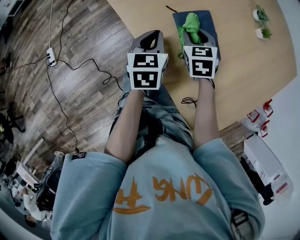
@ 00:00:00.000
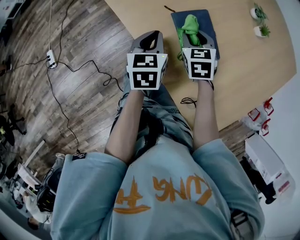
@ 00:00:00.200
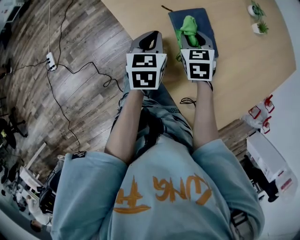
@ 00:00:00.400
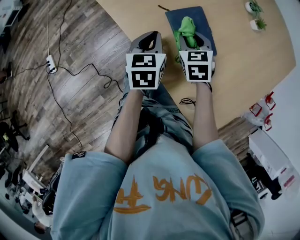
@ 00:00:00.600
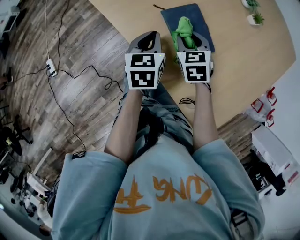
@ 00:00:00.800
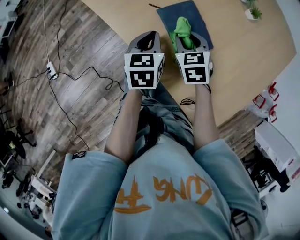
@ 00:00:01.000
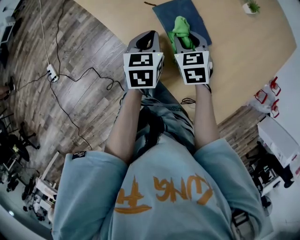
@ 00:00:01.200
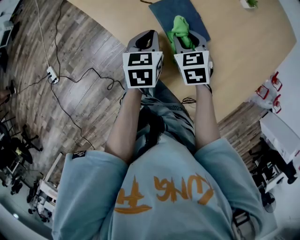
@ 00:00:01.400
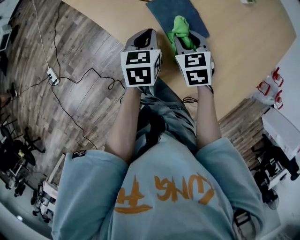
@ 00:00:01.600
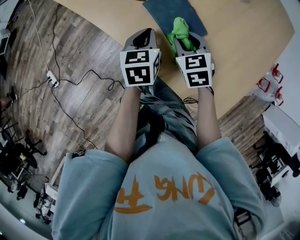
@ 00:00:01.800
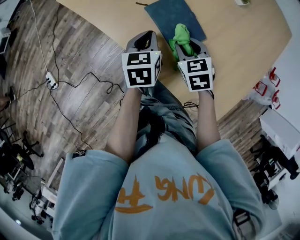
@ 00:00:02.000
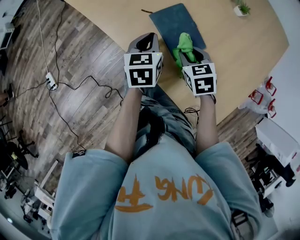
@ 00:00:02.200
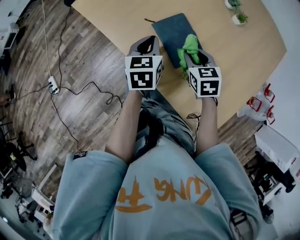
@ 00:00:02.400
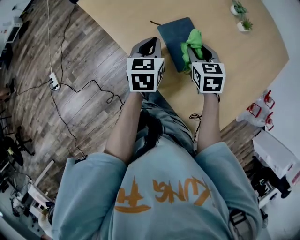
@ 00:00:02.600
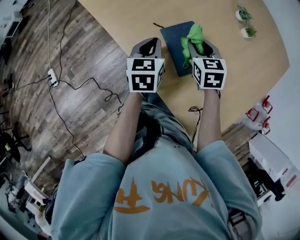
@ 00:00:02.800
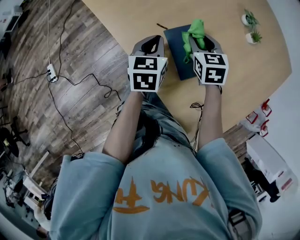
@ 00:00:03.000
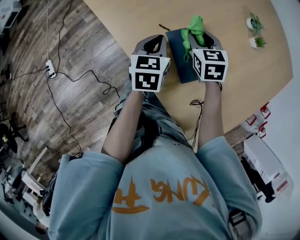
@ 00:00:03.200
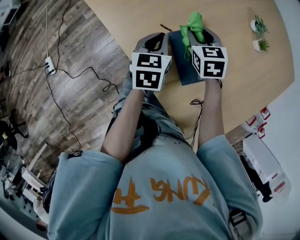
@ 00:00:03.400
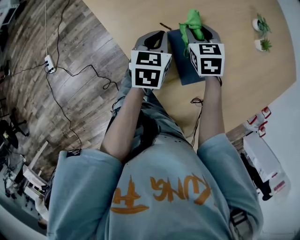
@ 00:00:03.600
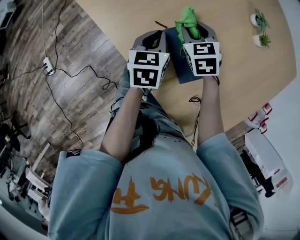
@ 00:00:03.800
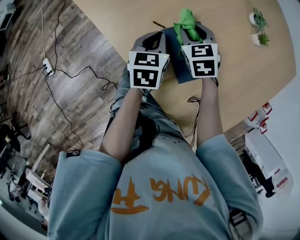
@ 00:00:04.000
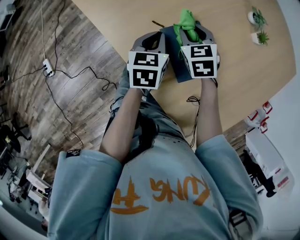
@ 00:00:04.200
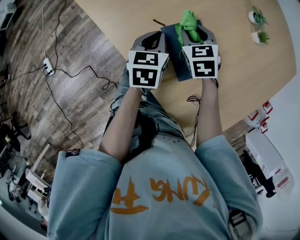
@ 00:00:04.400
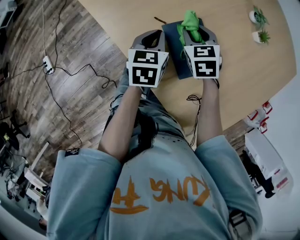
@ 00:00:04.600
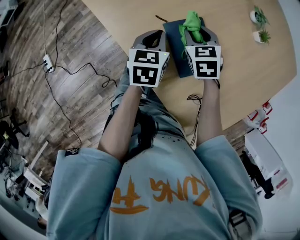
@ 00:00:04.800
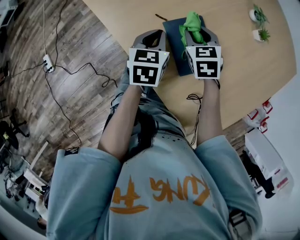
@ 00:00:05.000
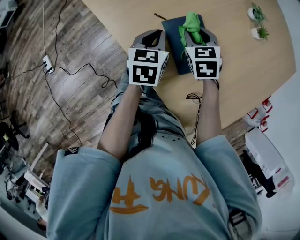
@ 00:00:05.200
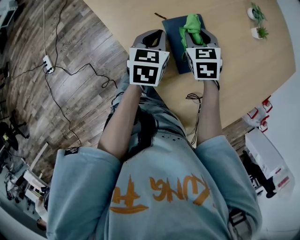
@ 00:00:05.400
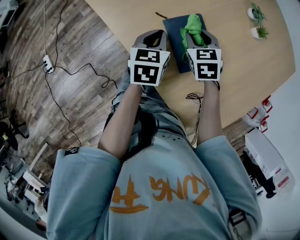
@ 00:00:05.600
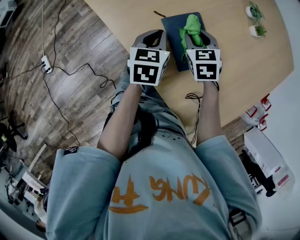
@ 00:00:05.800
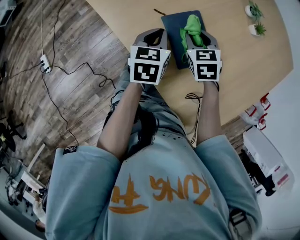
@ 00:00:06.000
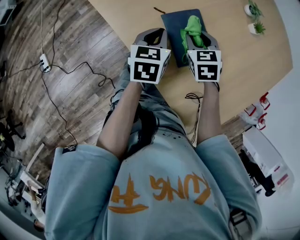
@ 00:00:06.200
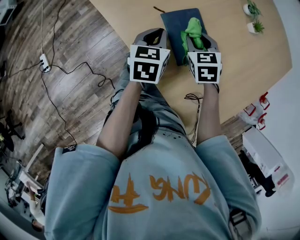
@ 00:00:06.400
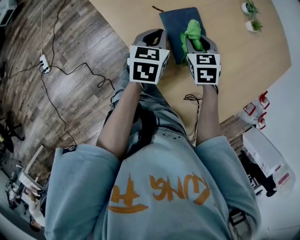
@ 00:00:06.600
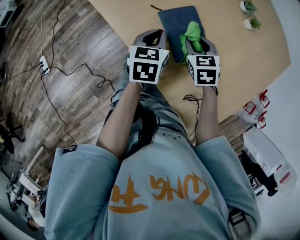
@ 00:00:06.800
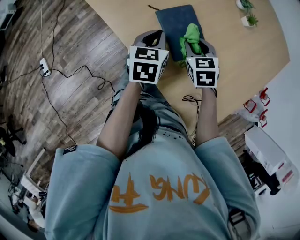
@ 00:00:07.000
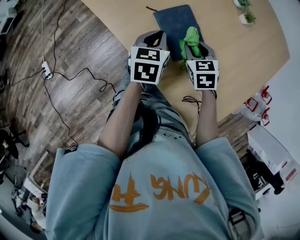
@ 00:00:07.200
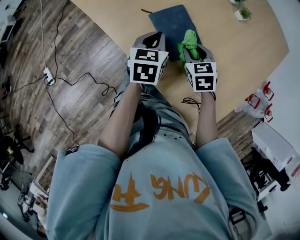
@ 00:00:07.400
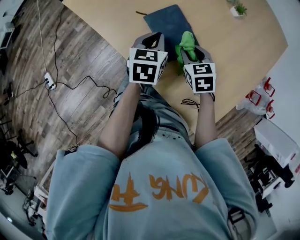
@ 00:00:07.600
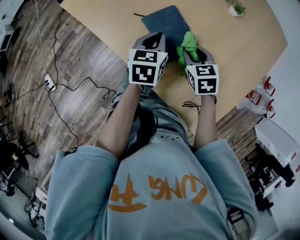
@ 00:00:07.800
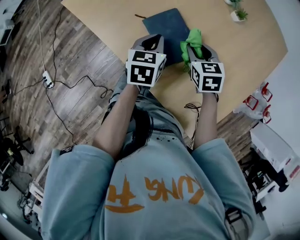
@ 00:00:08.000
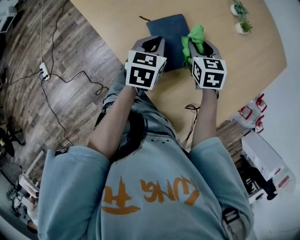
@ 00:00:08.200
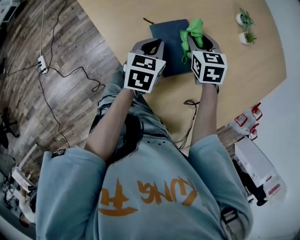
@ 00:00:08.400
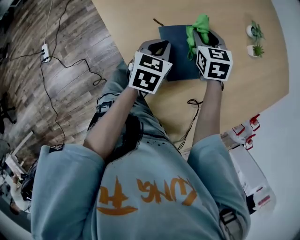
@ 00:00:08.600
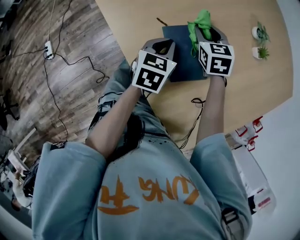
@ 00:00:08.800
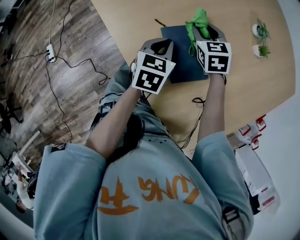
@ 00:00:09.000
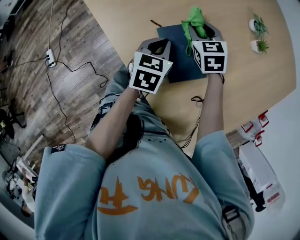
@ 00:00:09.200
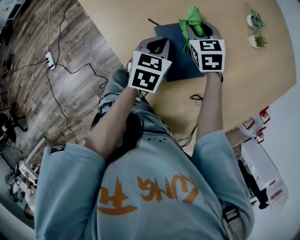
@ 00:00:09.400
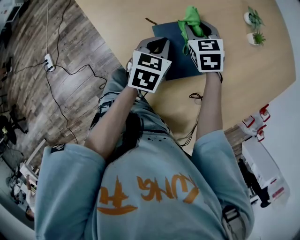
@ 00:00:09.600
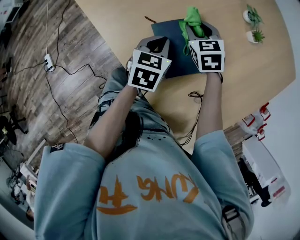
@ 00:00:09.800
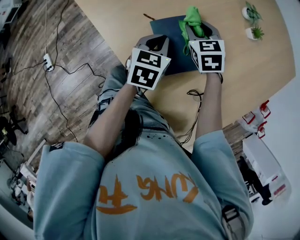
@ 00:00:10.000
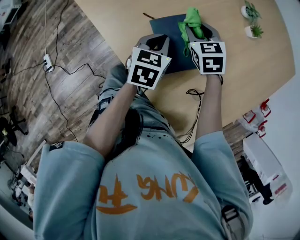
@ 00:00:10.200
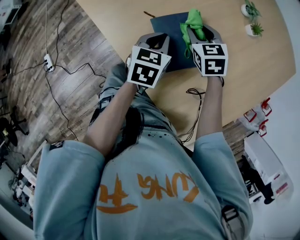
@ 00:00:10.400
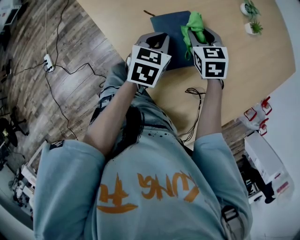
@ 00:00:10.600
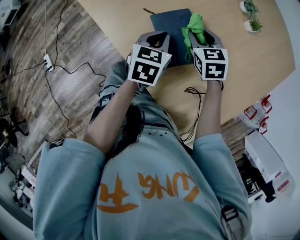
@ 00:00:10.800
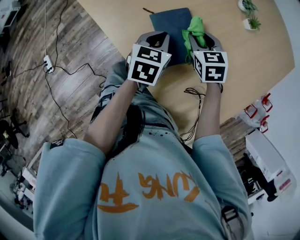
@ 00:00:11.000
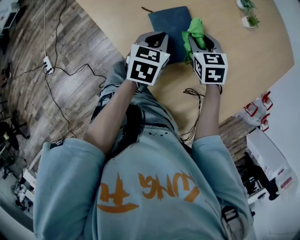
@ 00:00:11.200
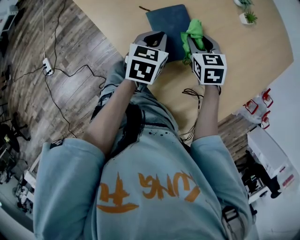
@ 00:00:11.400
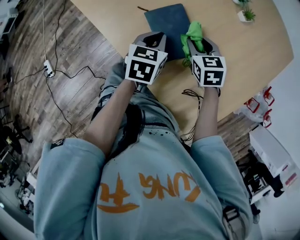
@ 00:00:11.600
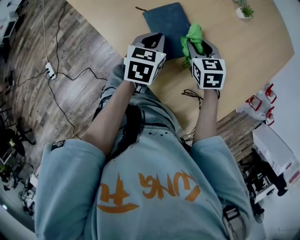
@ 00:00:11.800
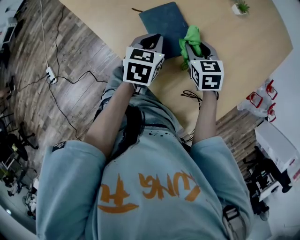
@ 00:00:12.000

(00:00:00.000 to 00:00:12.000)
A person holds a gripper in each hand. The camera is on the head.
00:00:00.000 - 00:00:01.600: The right gripper heads backward, covering roughly 5 cm. The left gripper heads to the right, covering about 5 cm.
00:00:01.600 - 00:00:03.000: The right gripper is displaced forward by approximately 10 cm, while the left gripper is displaced forward by about 10 cm.
00:00:03.000 - 00:00:04.400: The right gripper ends up roughly 5 cm from where it was. Meanwhile the left gripper moves roughly 5 cm.
00:00:04.400 - 00:00:06.000: The right gripper goes approximately 5 cm backward.
00:00:06.000 - 00:00:07.600: The right gripper is displaced backward and to the right by some 10 cm. The left gripper moves to the right, about 5 cm.
00:00:07.600 - 00:00:09.000: The right gripper moves forward, some 20 cm, while the left gripper shifts some 5 cm forward.
00:00:09.000 - 00:00:10.400: The right gripper shifts some 5 cm backward.
00:00:10.400 - 00:00:12.000: The right gripper is displaced backward and to the right by about 10 cm.

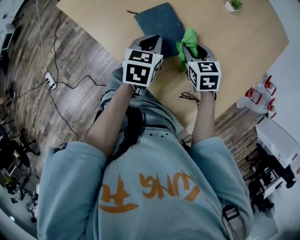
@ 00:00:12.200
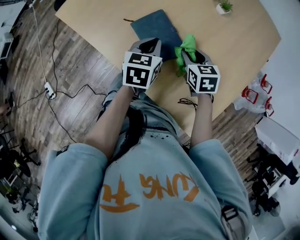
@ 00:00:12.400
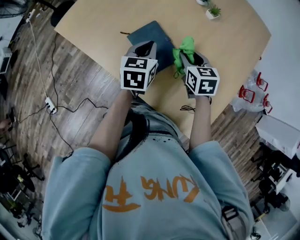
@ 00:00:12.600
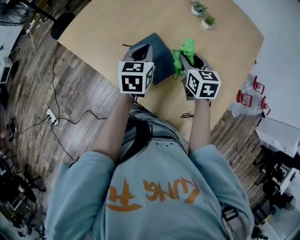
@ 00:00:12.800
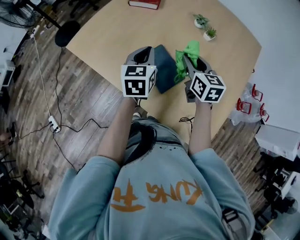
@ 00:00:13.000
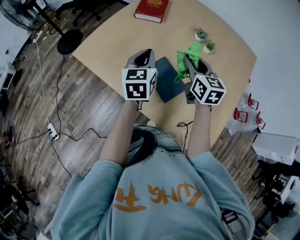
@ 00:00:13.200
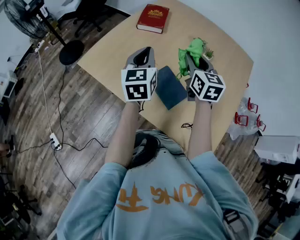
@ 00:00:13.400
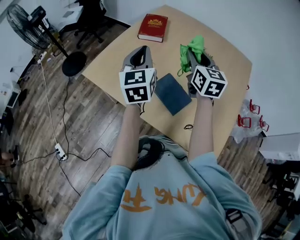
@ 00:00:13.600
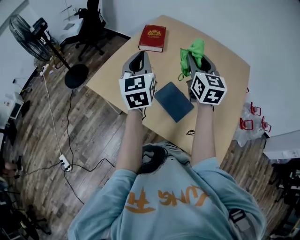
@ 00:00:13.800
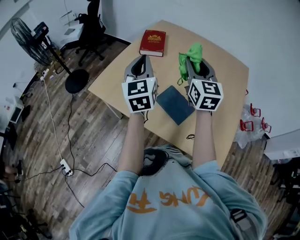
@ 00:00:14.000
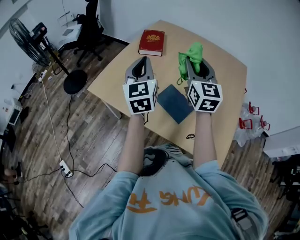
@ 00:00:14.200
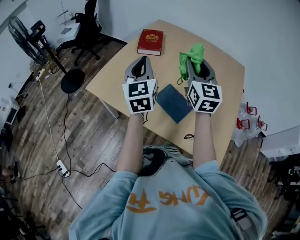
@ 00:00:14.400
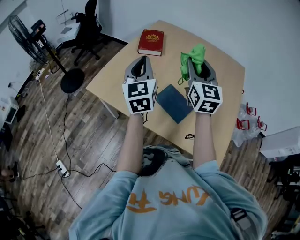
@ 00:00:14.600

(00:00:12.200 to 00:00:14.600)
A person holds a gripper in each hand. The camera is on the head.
00:00:12.200 - 00:00:13.400: The right gripper moves upward, roughly 25 cm, and changes its angle by some 30 degrees; the left gripper heads upward and to the left, covering roughly 25 cm, and swivels some 30 degrees.
00:00:13.400 - 00:00:14.600: The right gripper is displaced upward by some 10 cm, and rotates roughly 20 degrees. Meanwhile the left gripper moves upward and to the left, about 10 cm.

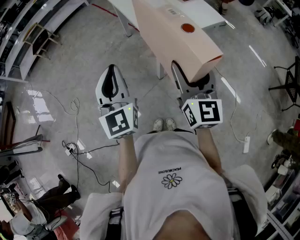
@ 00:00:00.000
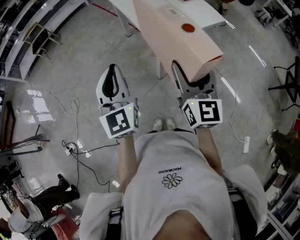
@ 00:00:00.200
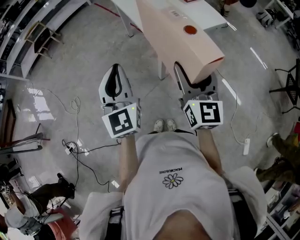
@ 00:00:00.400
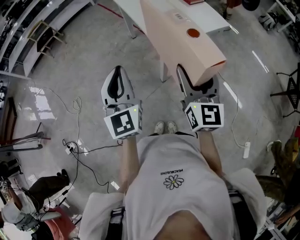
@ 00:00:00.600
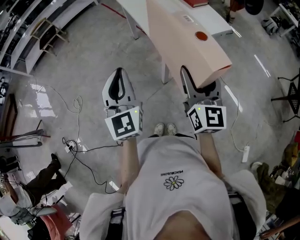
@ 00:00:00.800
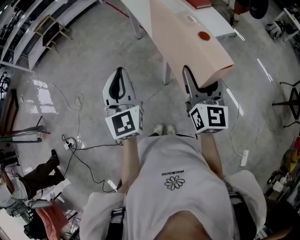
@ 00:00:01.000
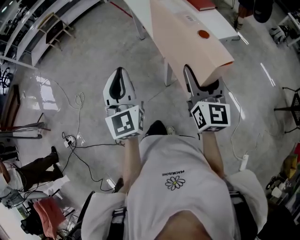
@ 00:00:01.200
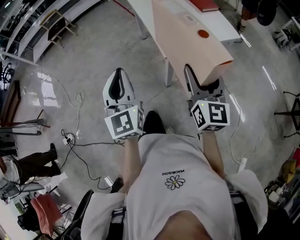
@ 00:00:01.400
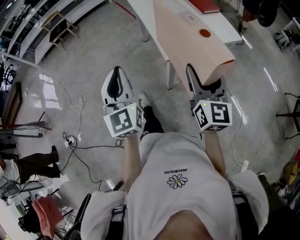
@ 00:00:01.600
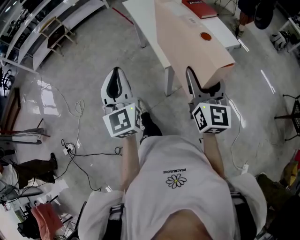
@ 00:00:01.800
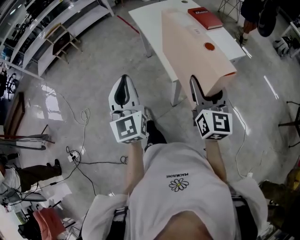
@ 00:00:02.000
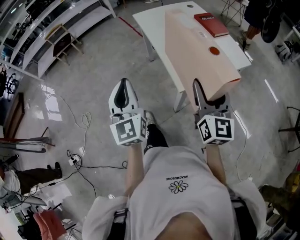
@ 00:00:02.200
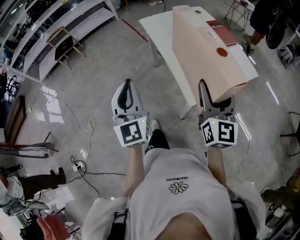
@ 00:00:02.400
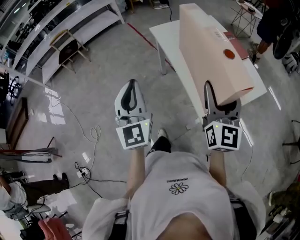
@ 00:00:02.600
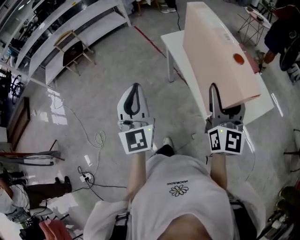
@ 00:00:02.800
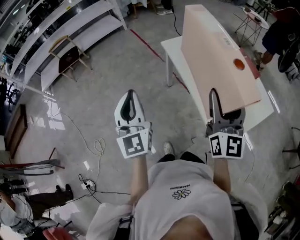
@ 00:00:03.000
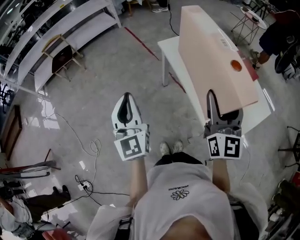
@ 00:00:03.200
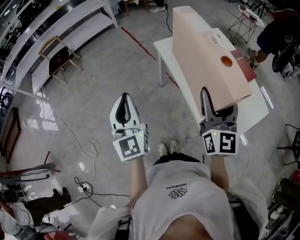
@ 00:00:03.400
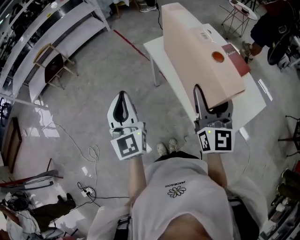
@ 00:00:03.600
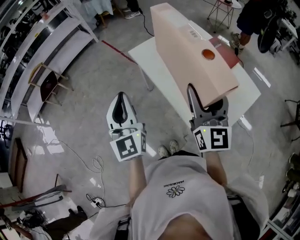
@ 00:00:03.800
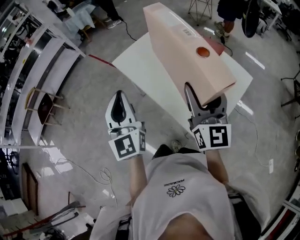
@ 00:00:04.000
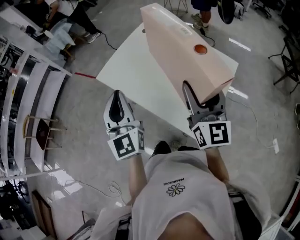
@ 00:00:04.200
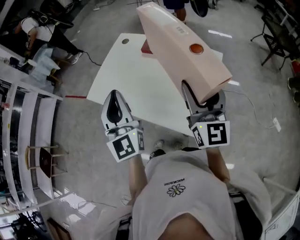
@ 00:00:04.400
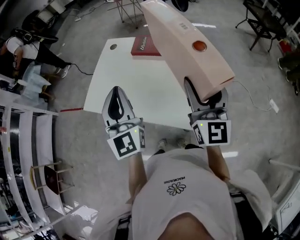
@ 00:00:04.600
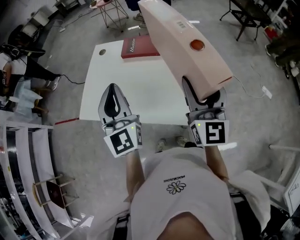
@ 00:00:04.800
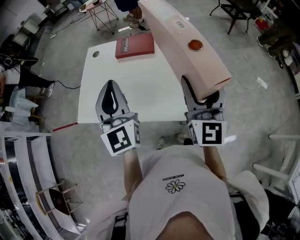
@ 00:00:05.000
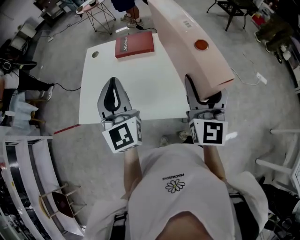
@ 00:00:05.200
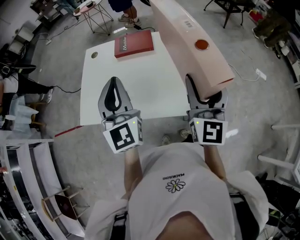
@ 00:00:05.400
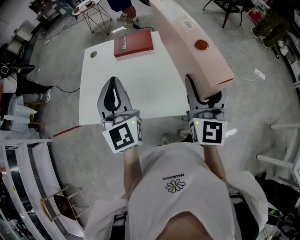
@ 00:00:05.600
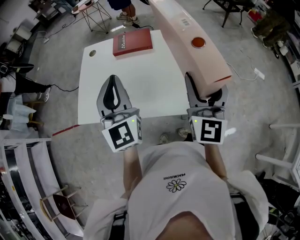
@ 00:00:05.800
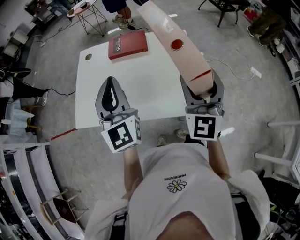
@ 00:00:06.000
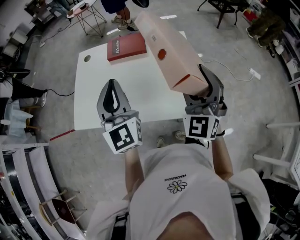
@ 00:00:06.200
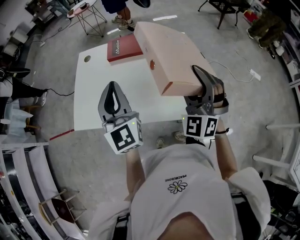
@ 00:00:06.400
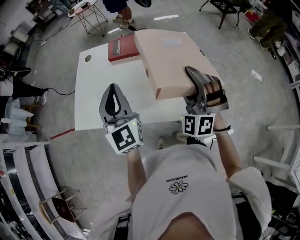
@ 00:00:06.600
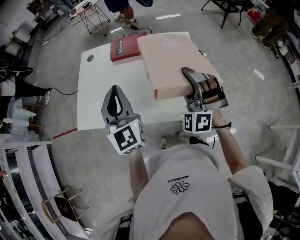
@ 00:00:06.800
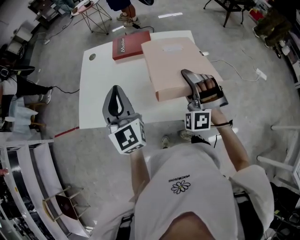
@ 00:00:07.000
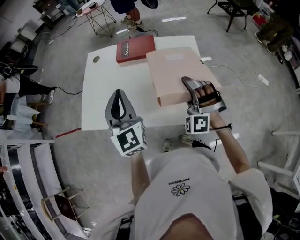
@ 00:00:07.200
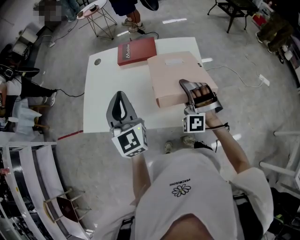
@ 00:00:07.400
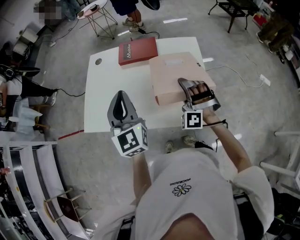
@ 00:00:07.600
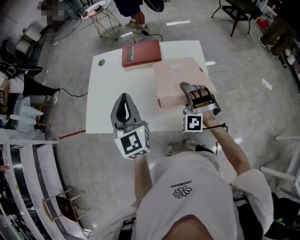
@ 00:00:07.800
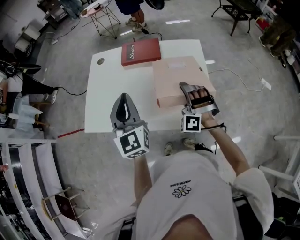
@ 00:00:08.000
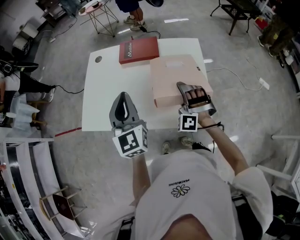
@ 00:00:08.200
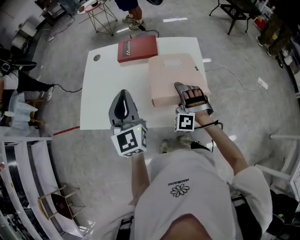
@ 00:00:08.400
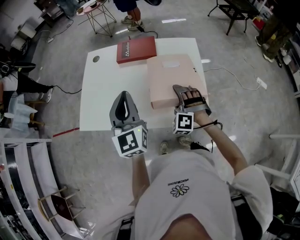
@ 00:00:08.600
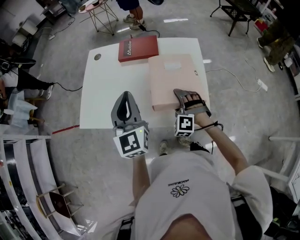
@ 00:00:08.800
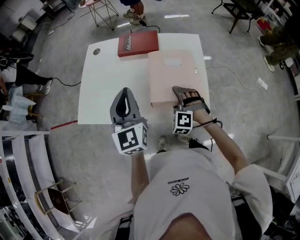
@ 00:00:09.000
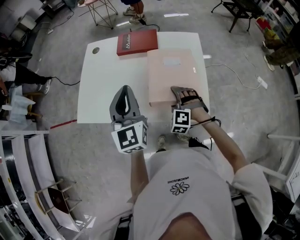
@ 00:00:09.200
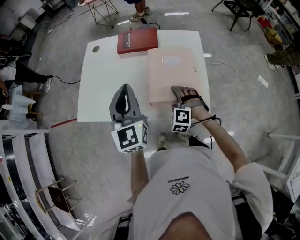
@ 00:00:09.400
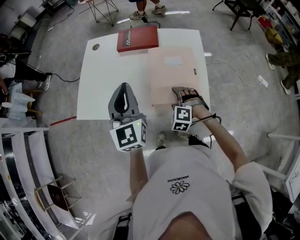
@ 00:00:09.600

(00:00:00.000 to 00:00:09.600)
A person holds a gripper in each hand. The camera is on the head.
00:00:00.000 - 00:00:01.600: The right gripper shifts about 5 cm forward.
00:00:01.600 - 00:00:03.200: The two grippers travel together, forward and to the left, about 50 cm.
00:00:03.200 - 00:00:04.800: The right gripper shifts by some 20 cm, and rotates roughly 50 degrees. Meanwhile the left gripper shifts by about 35 cm, and swivels about 60 degrees.
00:00:04.800 - 00:00:06.400: The right gripper goes about 5 cm downward, and rolls counterclockwise, seen from behind, by approximately 50 degrees.
00:00:06.400 - 00:00:08.000: The right gripper moves downward, about 15 cm, and swivels roughly 30 degrees. The left gripper changes place by roughly 5 cm.
00:00:08.000 - 00:00:09.600: The right gripper is displaced downward and backward by approximately 10 cm, and turns by some 30 degrees.
